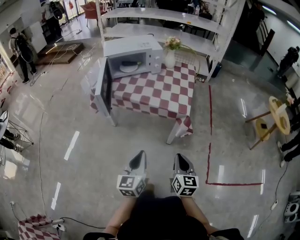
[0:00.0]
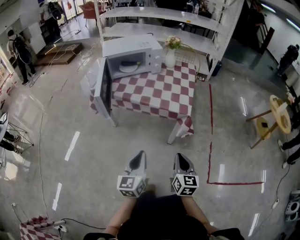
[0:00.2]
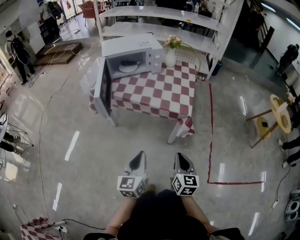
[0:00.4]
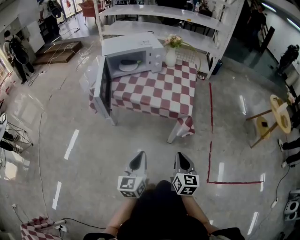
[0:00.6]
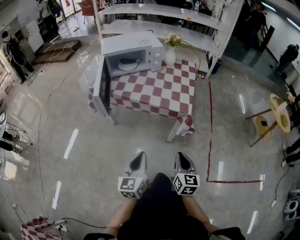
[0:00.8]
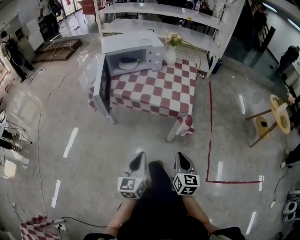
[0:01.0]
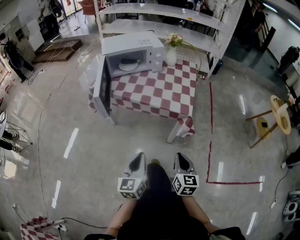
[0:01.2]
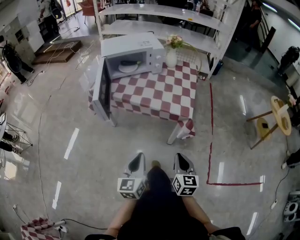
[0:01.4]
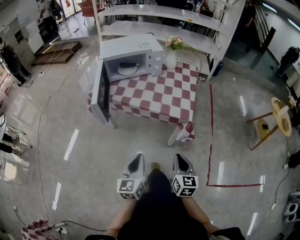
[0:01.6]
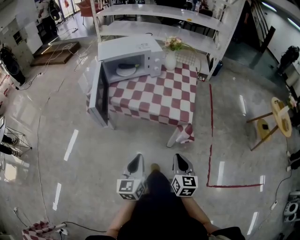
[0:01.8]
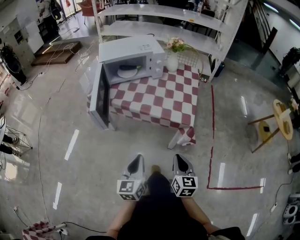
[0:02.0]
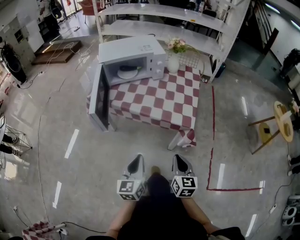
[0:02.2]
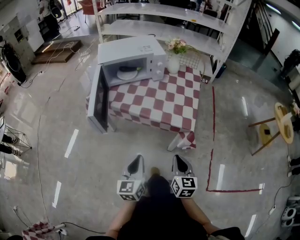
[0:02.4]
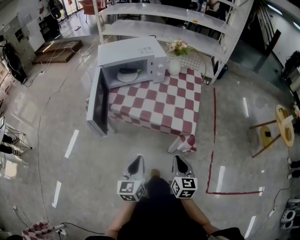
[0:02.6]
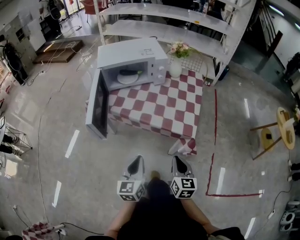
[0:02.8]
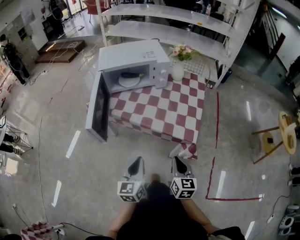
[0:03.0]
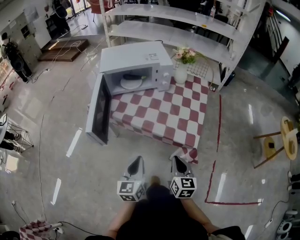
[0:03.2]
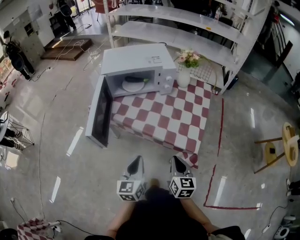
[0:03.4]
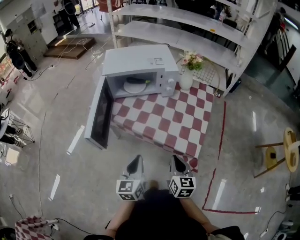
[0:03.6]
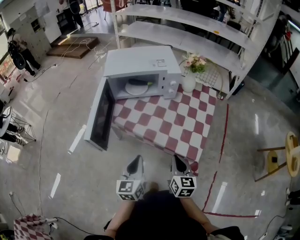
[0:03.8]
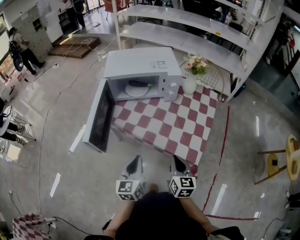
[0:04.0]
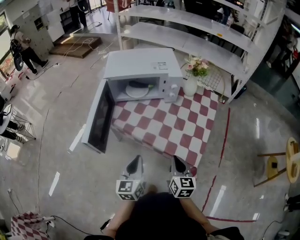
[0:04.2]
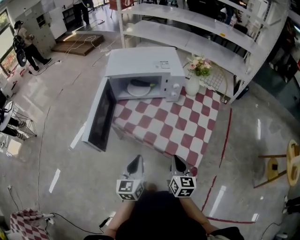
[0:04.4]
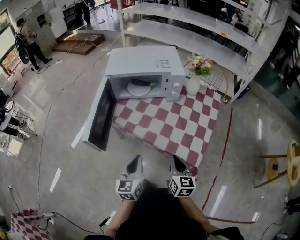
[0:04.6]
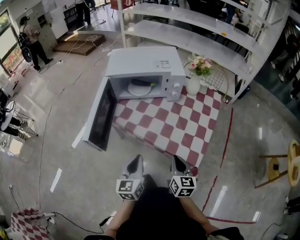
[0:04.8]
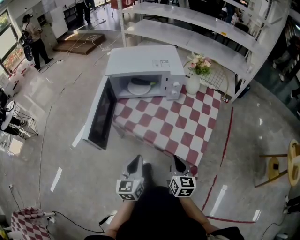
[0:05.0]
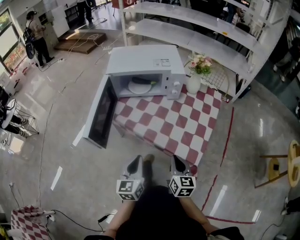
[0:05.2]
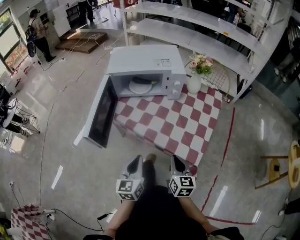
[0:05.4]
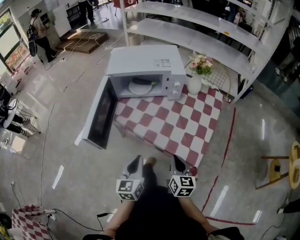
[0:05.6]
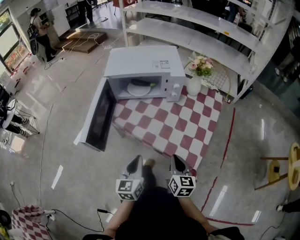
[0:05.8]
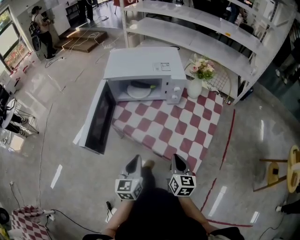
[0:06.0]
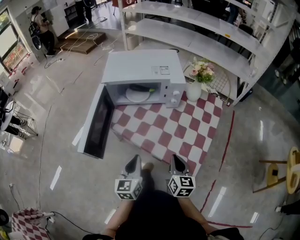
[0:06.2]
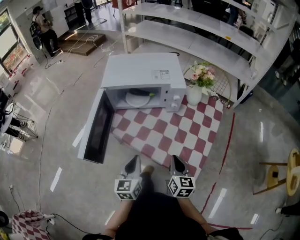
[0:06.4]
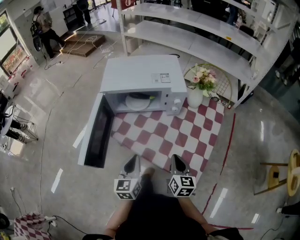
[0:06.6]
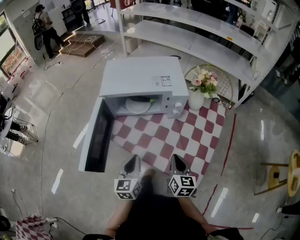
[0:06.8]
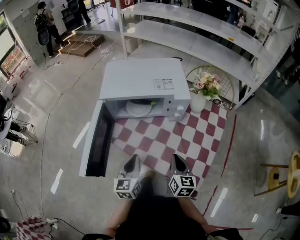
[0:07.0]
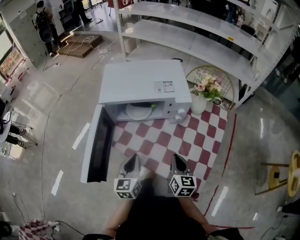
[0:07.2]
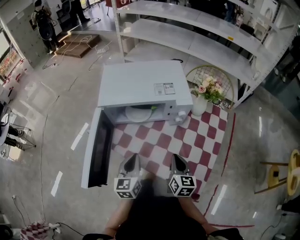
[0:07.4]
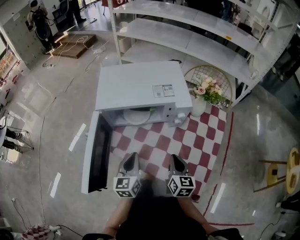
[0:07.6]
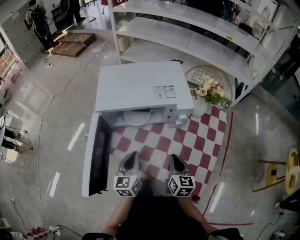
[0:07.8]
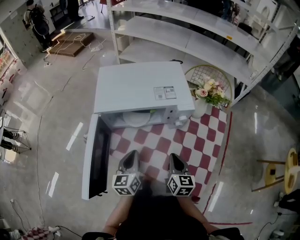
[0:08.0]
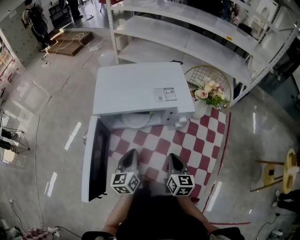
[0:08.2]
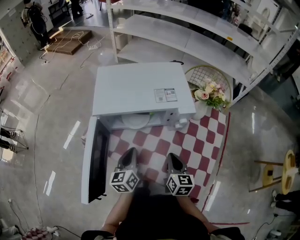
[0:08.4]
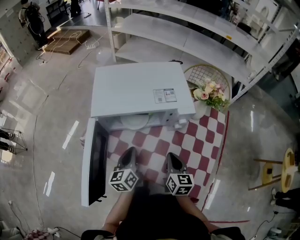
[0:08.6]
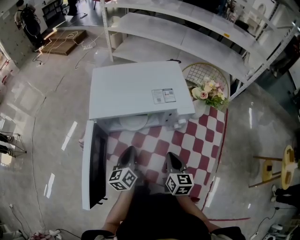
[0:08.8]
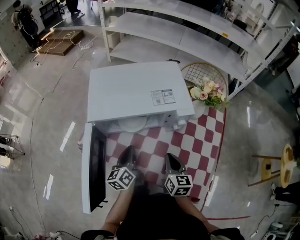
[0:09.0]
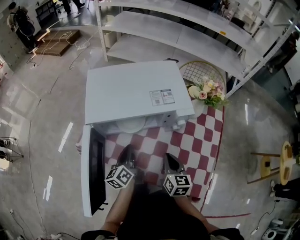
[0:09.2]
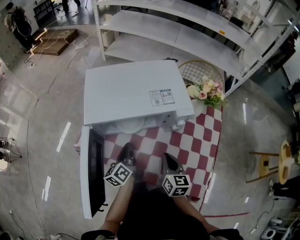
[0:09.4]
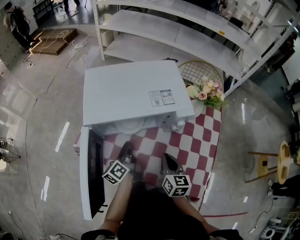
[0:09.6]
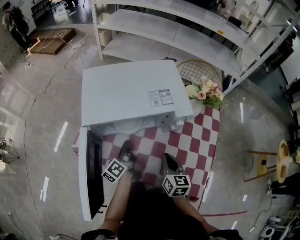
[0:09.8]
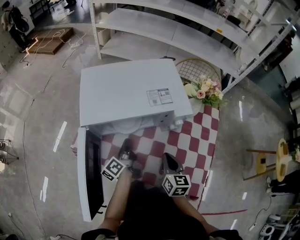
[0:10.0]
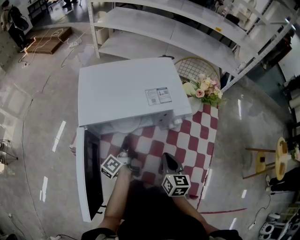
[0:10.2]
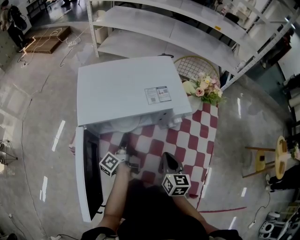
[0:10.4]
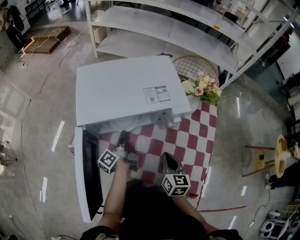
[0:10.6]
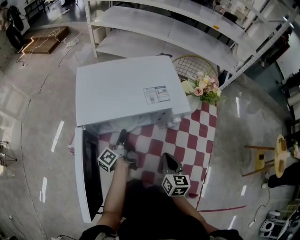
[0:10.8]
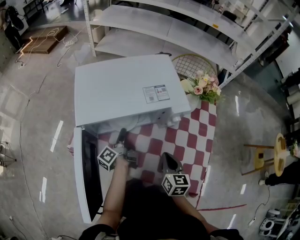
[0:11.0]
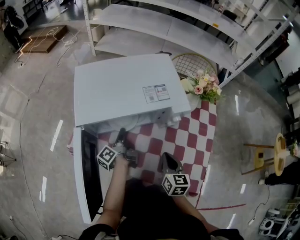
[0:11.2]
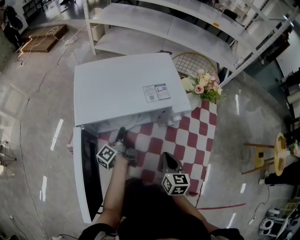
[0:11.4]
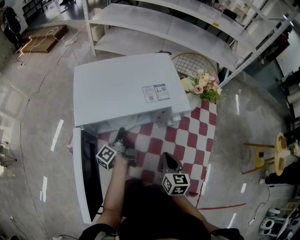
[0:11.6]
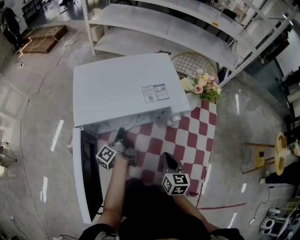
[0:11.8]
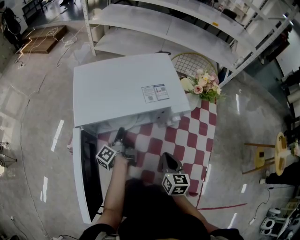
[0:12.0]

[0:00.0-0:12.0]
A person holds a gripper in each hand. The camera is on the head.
0.0 to 1.6 s: The two grippers go some 5 cm forward.
1.6 to 3.0 s: The two grippers go roughly 15 cm forward.
3.0 to 4.4 s: The two grippers go some 10 cm forward.
4.4 to 6.0 s: There are only small adjustments of the grippers.
6.0 to 7.6 s: The two grippers go about 15 cm forward.
7.6 to 9.0 s: The right gripper travels forward by roughly 5 cm; the left gripper goes roughly 10 cm forward, and turns by about 30 degrees.
9.0 to 10.4 s: The left gripper heads forward, covering approximately 5 cm, rolls counterclockwise, seen from behind, by about 40 degrees, and opens.
10.4 to 12.0 s: The left gripper closes.

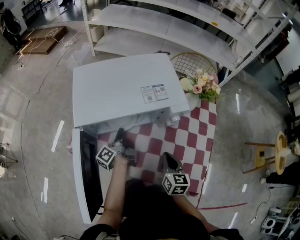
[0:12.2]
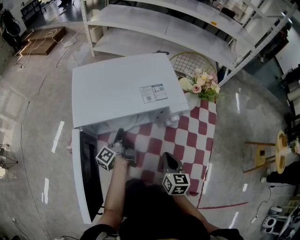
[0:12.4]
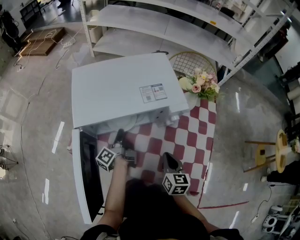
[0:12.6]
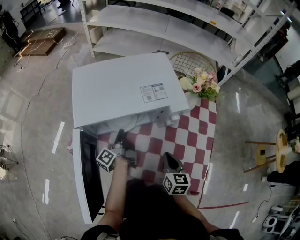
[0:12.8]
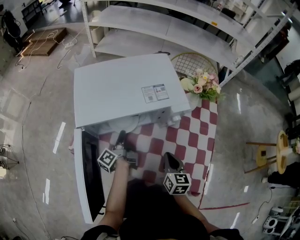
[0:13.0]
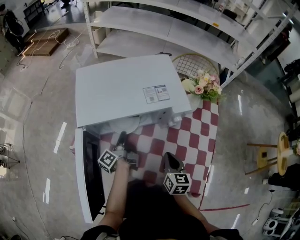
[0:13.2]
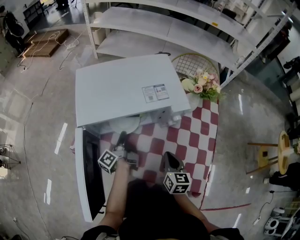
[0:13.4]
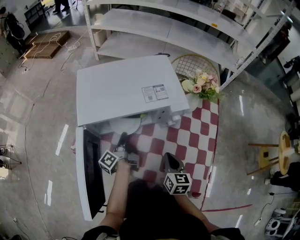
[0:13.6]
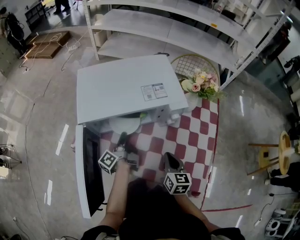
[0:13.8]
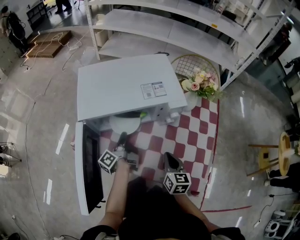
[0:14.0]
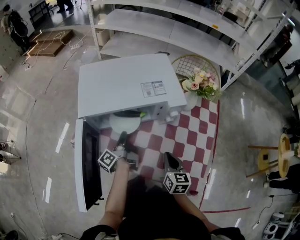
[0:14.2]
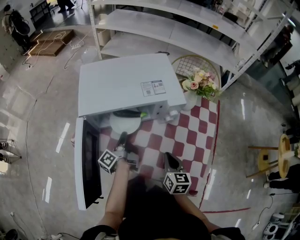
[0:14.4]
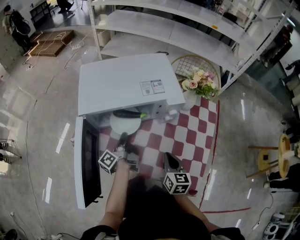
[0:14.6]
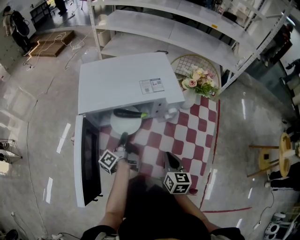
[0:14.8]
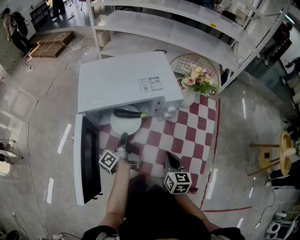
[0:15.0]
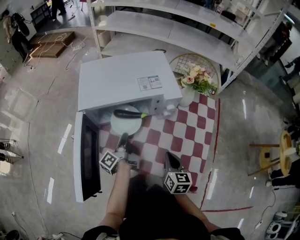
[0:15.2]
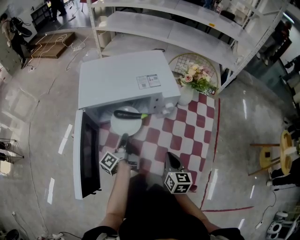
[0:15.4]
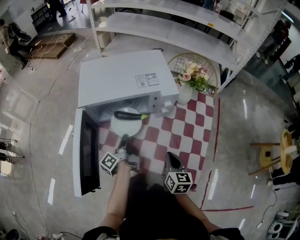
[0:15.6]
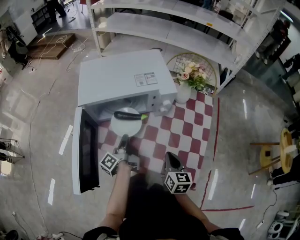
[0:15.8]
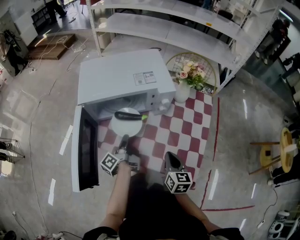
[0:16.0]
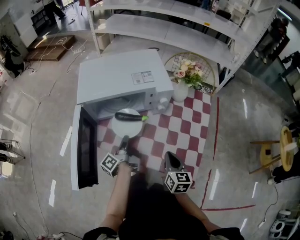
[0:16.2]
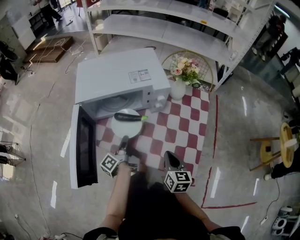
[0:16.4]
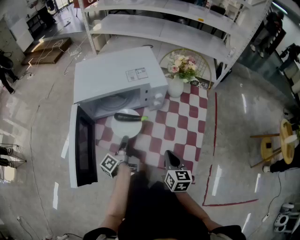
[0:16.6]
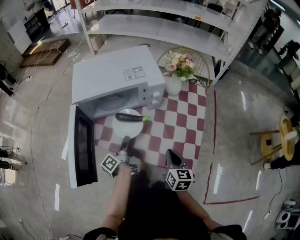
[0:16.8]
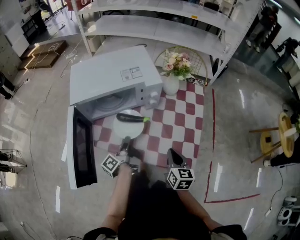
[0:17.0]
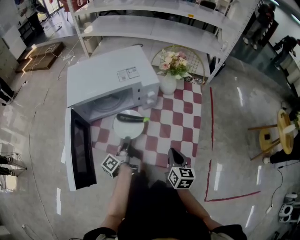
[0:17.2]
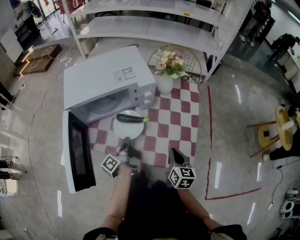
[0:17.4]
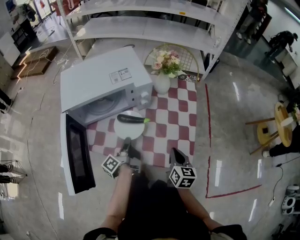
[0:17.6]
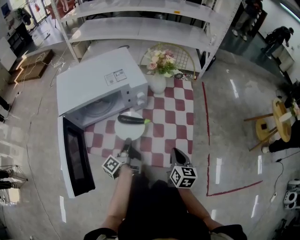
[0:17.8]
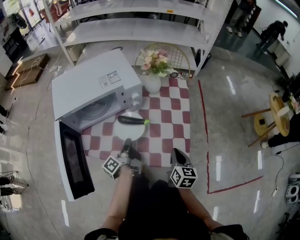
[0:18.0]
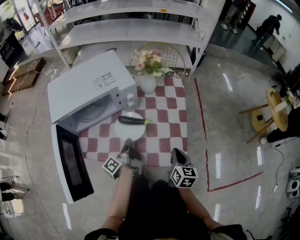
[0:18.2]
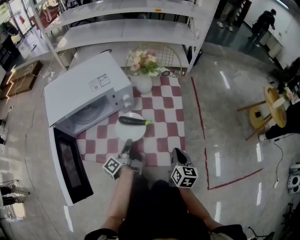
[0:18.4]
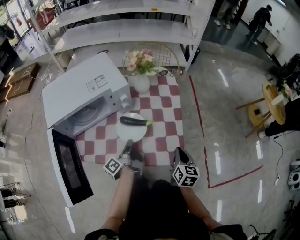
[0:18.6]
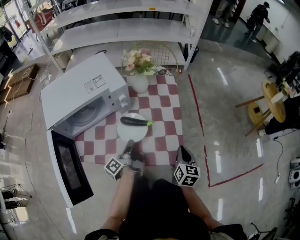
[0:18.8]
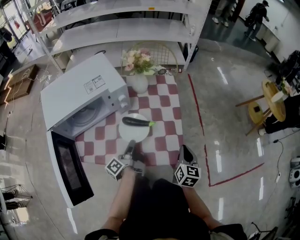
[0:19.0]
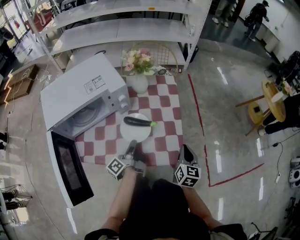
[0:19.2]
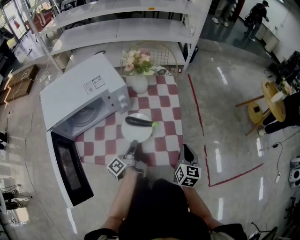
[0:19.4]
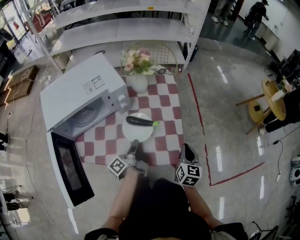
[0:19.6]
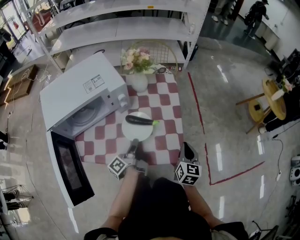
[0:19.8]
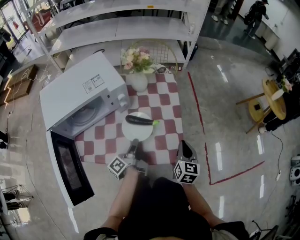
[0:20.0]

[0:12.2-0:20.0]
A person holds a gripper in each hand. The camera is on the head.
12.2 to 13.8 s: The grippers stay close to where they were, moving slightly.
13.8 to 15.4 s: The two grippers go about 5 cm backward.
15.4 to 16.8 s: The grippers both shift backward by roughly 5 cm.
16.8 to 18.4 s: Both grippers move to the right, some 10 cm. The right gripper turns by about 20 degrees.
18.4 to 20.0 s: The grippers make only small movements.

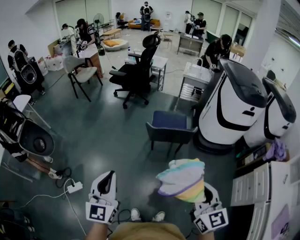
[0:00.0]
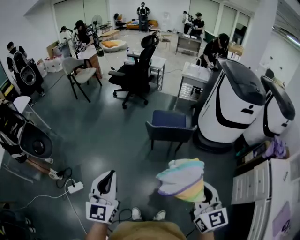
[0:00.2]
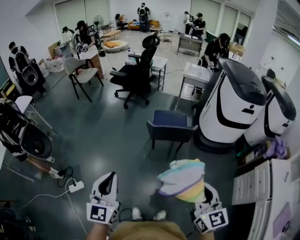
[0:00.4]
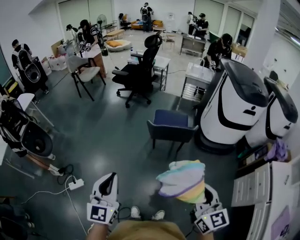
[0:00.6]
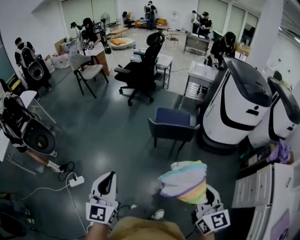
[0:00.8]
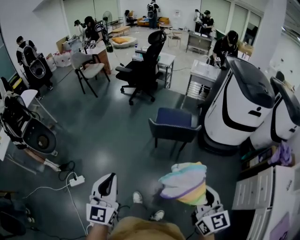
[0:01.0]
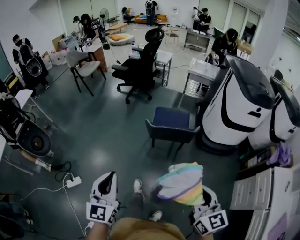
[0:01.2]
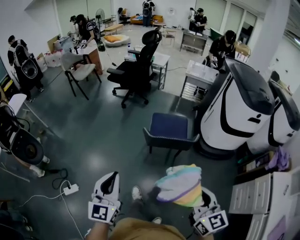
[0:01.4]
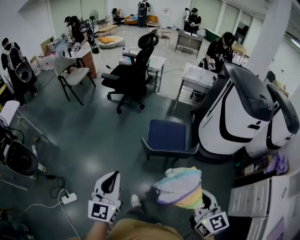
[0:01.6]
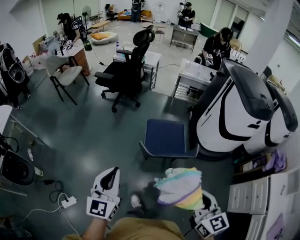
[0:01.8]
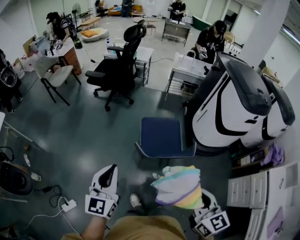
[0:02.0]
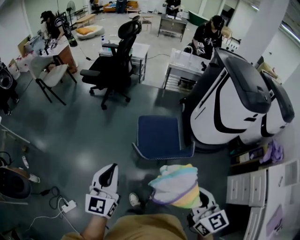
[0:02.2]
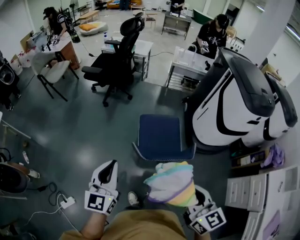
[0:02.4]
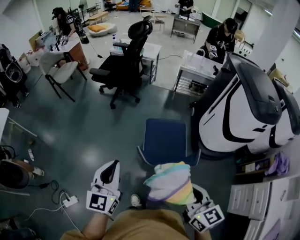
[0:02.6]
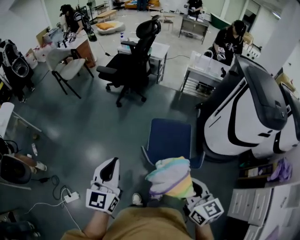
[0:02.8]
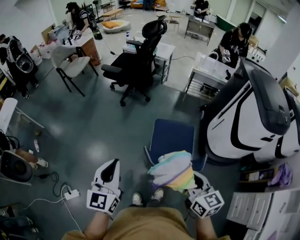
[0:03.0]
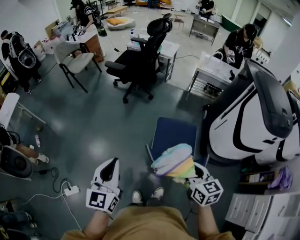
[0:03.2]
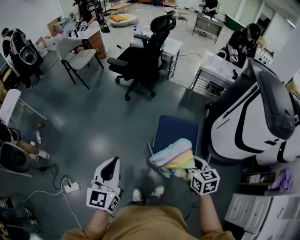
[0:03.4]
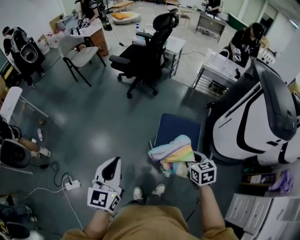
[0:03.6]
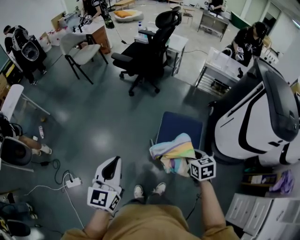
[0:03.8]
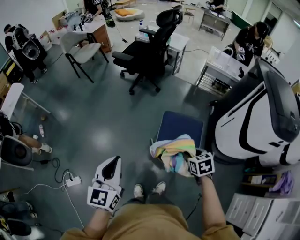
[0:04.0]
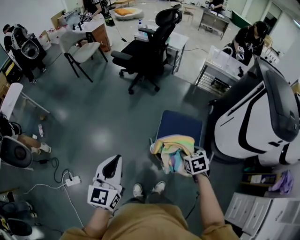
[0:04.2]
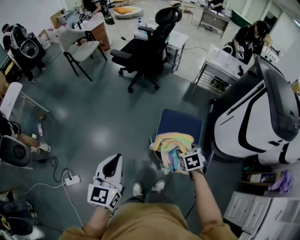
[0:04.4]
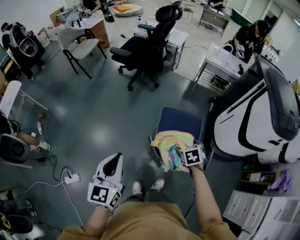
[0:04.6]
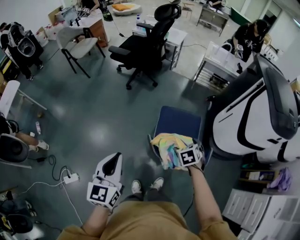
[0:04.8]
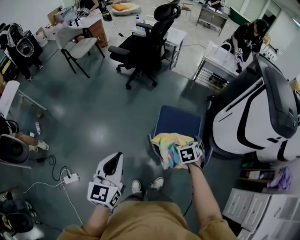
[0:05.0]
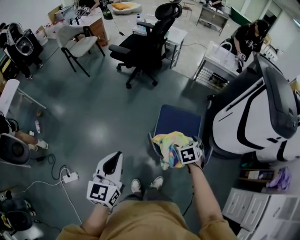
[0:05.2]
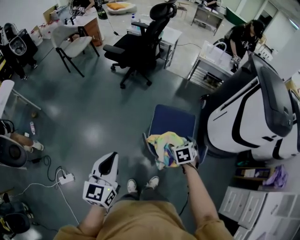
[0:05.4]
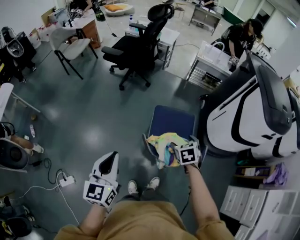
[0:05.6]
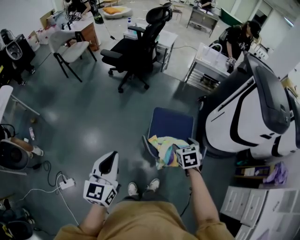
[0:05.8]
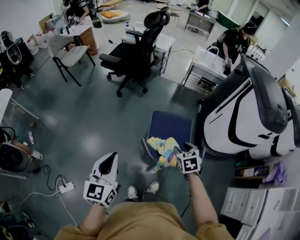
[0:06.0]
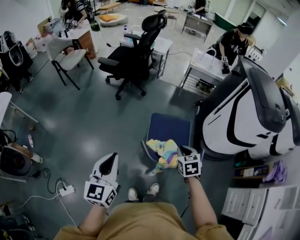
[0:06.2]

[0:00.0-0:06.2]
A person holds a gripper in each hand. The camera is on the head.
0.0 to 1.6 s: Both grippers move forward, some 20 cm.
1.6 to 3.2 s: The two grippers go approximately 25 cm forward.
3.2 to 4.6 s: The right gripper travels downward and forward by roughly 20 cm, points its fingers about 30 degrees further downward, and opens.
4.6 to 6.2 s: The right gripper is displaced upward by about 5 cm, and closes.
